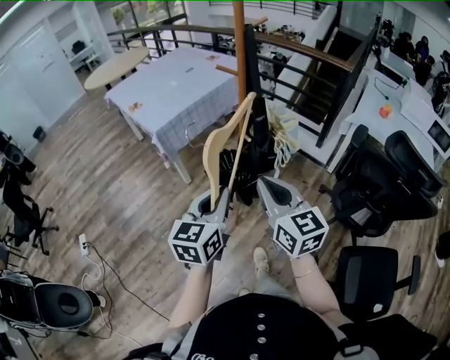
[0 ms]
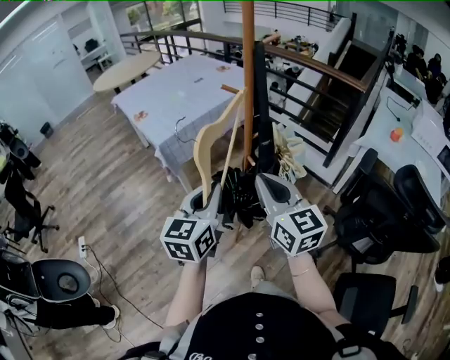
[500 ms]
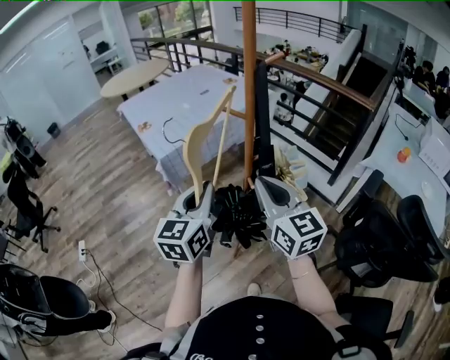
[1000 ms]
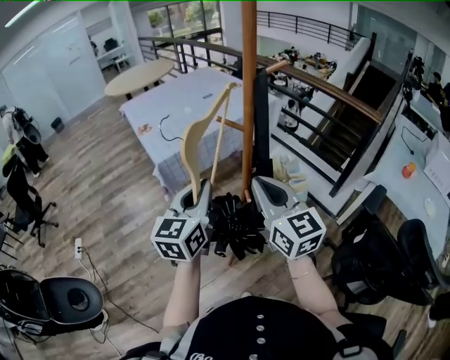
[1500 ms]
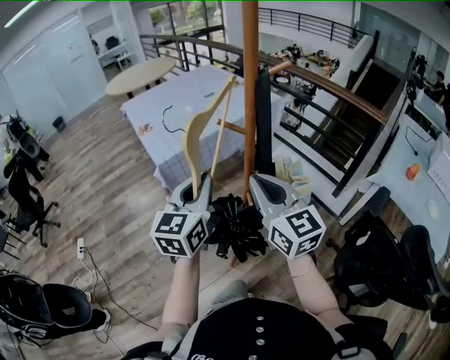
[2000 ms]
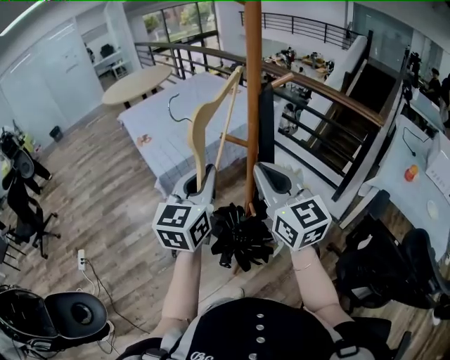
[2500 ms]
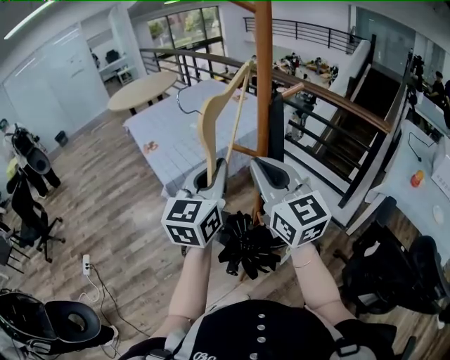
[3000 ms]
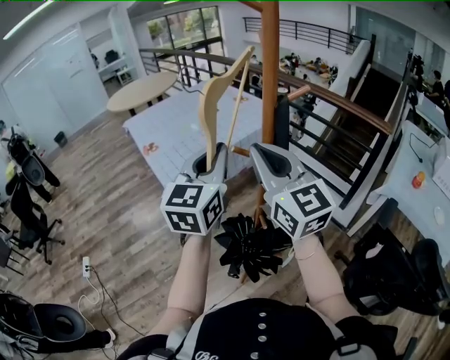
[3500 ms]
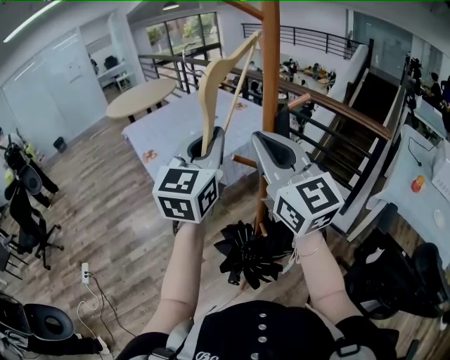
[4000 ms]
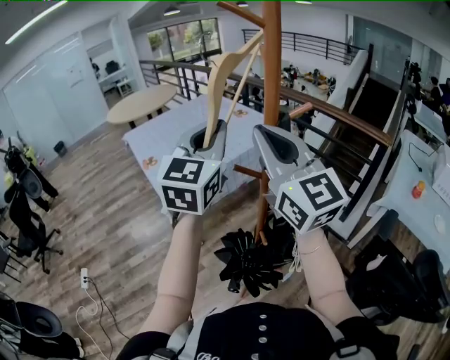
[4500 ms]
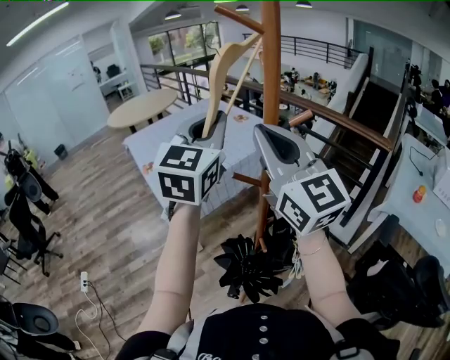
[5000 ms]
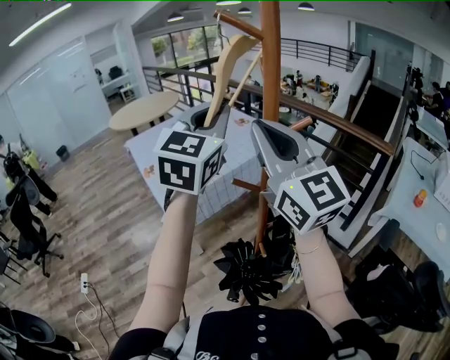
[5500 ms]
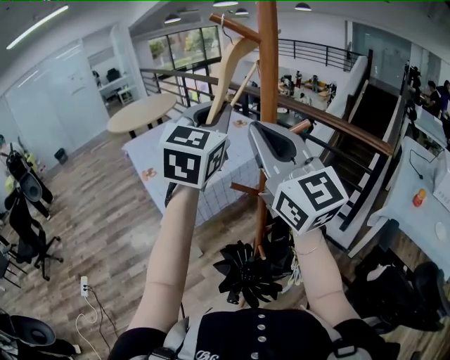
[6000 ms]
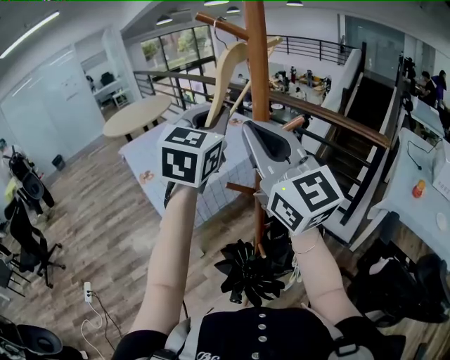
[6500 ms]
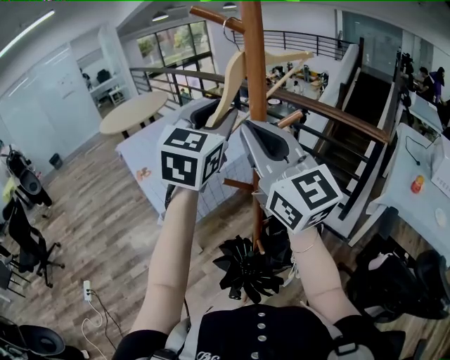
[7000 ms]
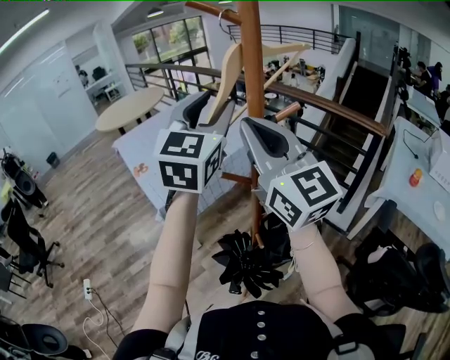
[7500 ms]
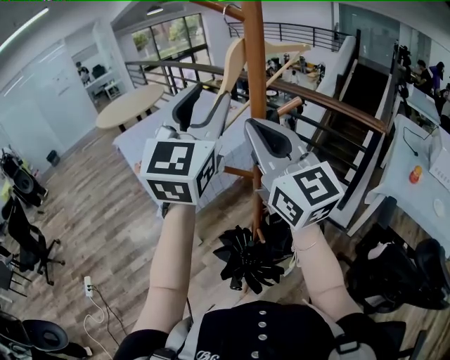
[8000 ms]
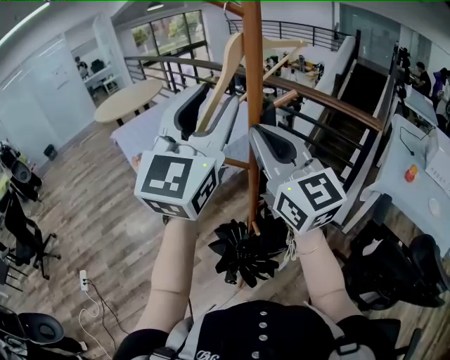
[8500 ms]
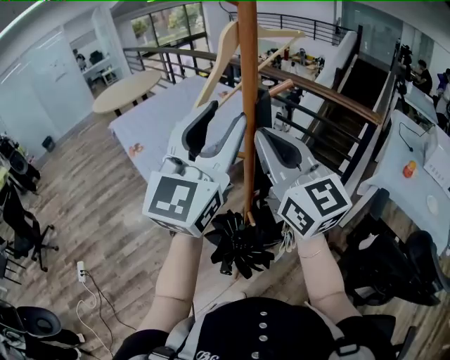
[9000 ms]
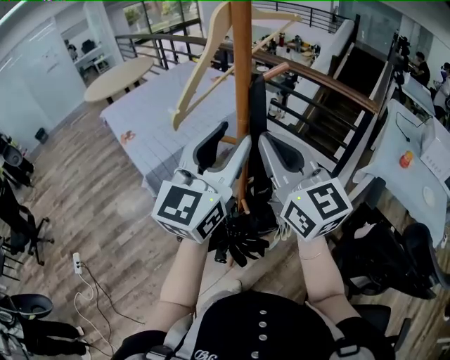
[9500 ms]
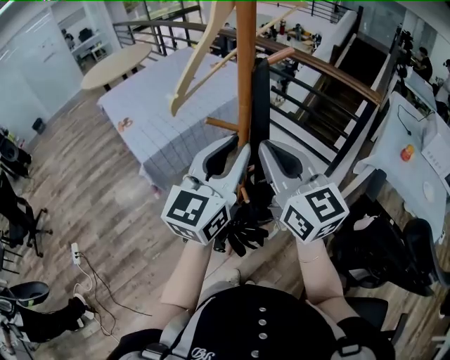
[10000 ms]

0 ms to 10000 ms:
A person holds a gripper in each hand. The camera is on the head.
0 ms to 2000 ms: Both grippers move forward, approximately 25 cm.
2000 ms to 4000 ms: The two grippers go approximately 20 cm upward and forward.
4000 ms to 6000 ms: The left gripper goes about 10 cm upward and forward. The right gripper shifts some 5 cm upward.
6000 ms to 8000 ms: The left gripper ends up some 5 cm from where it was, and opens.
8000 ms to 10000 ms: The grippers both shift downward and backward by roughly 20 cm. The left gripper turns by approximately 30 degrees, and closes.

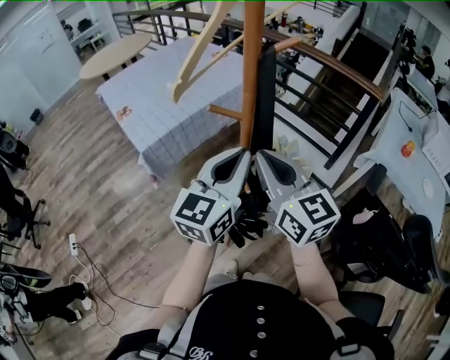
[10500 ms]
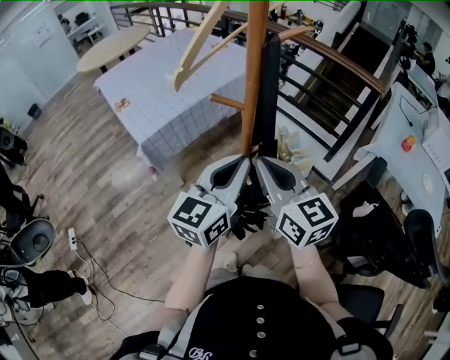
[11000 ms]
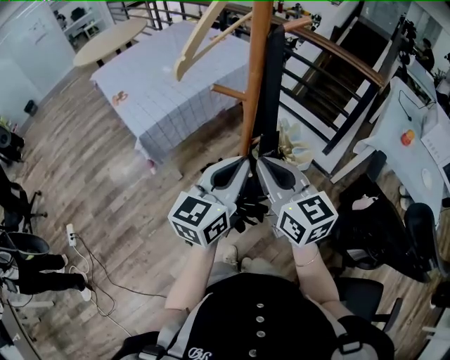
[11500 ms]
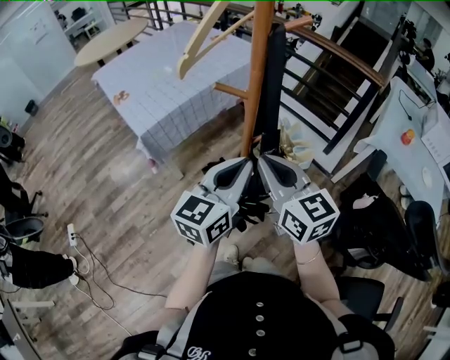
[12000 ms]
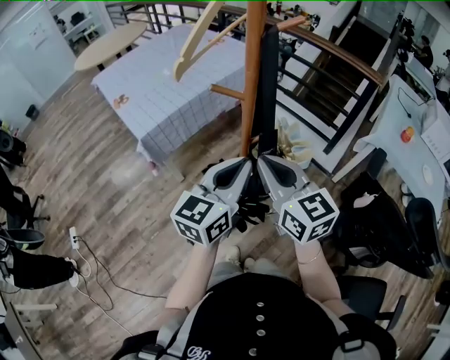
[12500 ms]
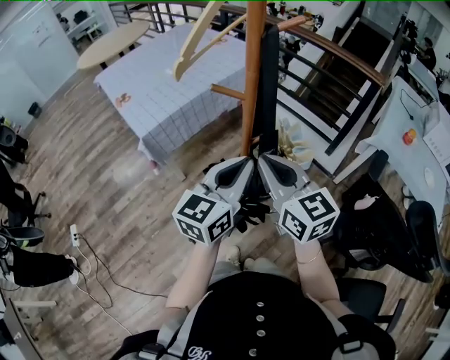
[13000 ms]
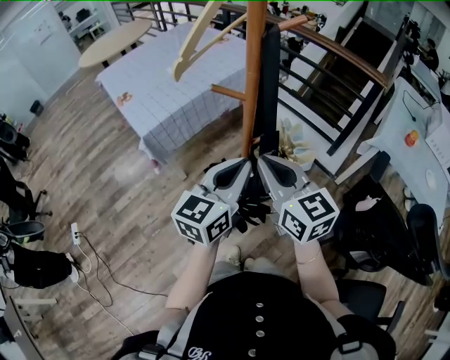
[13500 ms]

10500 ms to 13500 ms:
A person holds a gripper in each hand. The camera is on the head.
10500 ms to 12000 ms: The two grippers go roughly 5 cm downward.
12000 ms to 13500 ms: Both grippers stay about where they are.

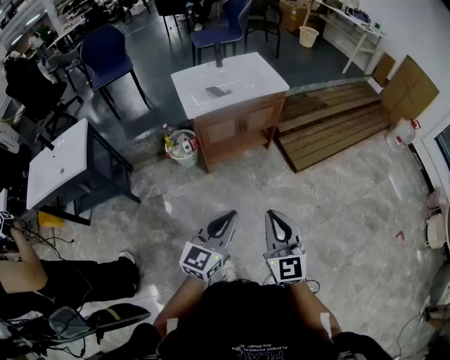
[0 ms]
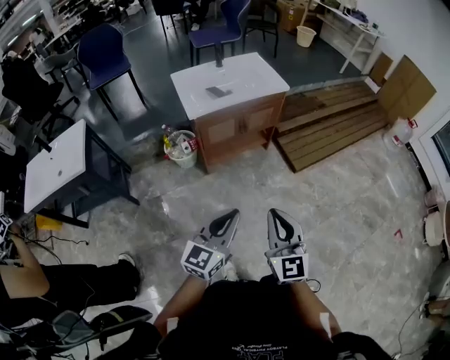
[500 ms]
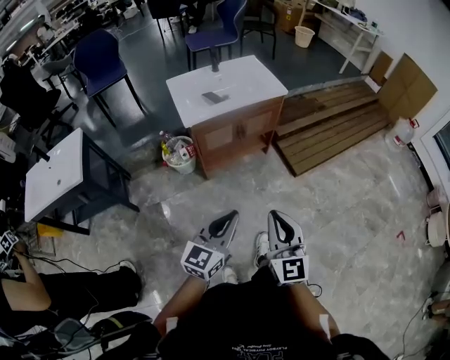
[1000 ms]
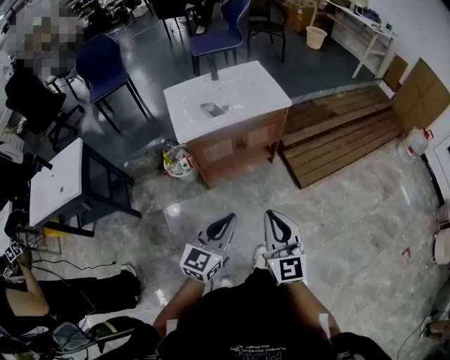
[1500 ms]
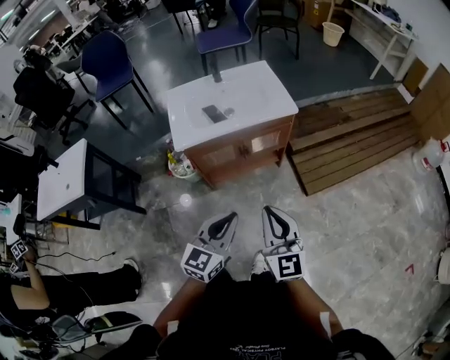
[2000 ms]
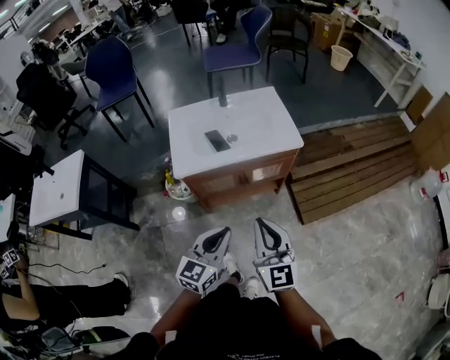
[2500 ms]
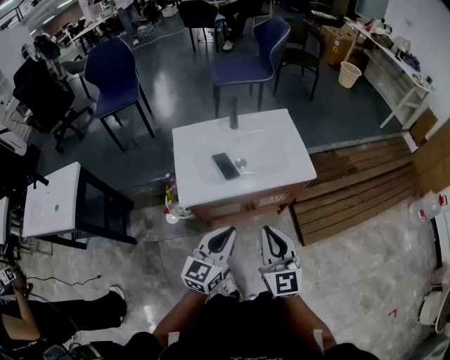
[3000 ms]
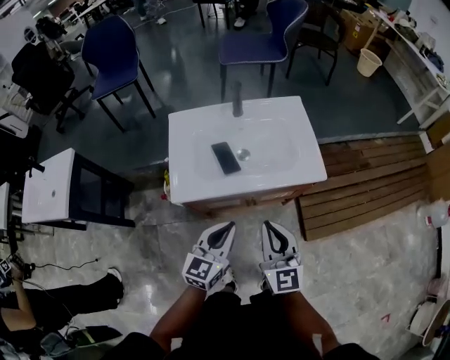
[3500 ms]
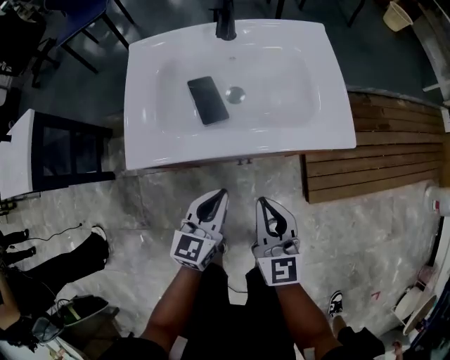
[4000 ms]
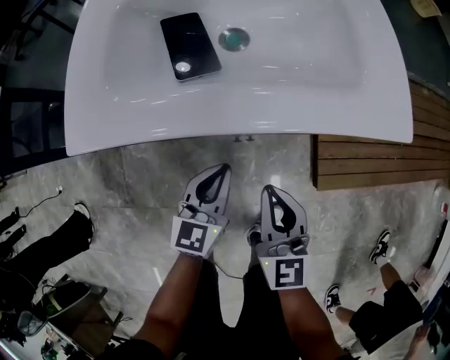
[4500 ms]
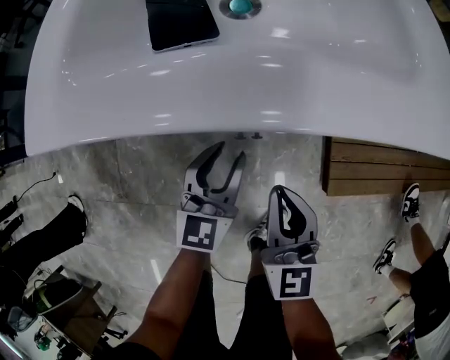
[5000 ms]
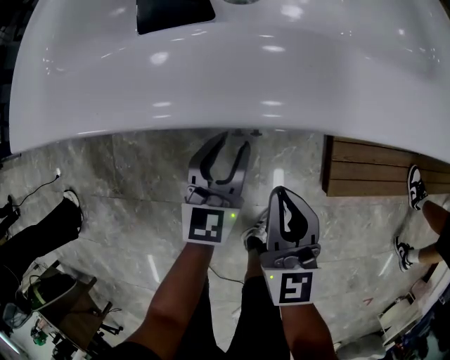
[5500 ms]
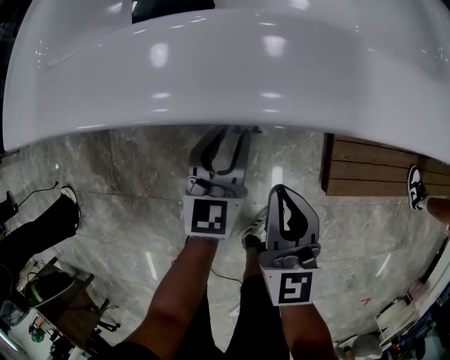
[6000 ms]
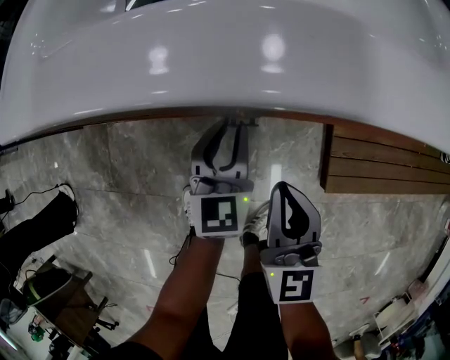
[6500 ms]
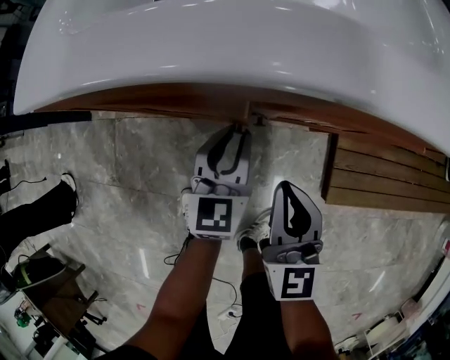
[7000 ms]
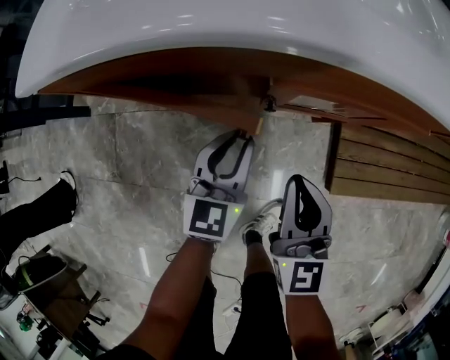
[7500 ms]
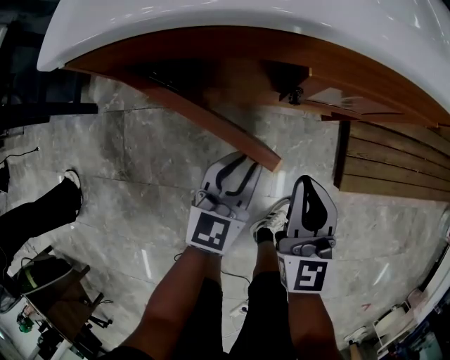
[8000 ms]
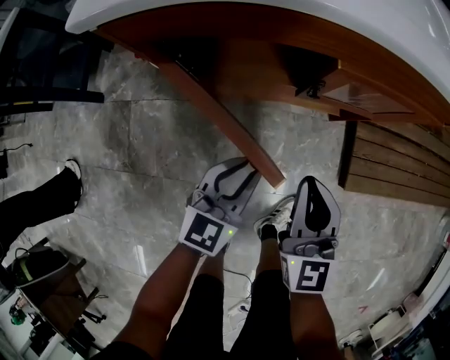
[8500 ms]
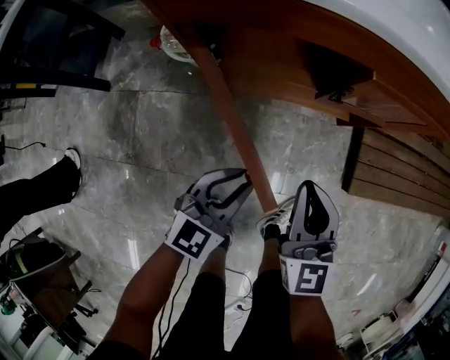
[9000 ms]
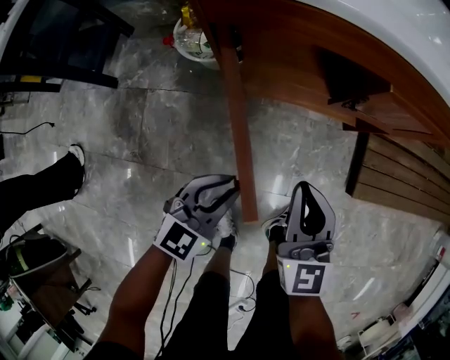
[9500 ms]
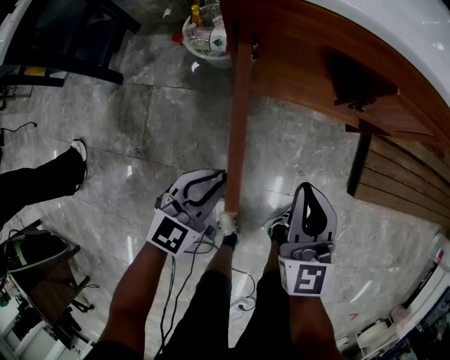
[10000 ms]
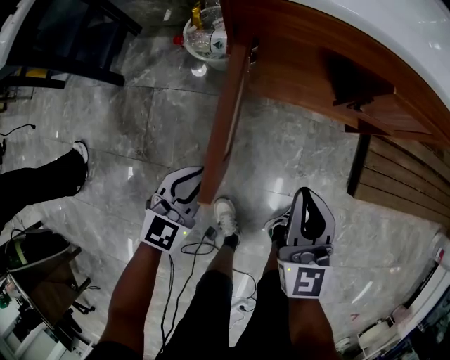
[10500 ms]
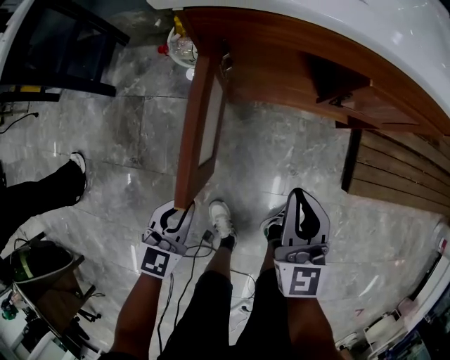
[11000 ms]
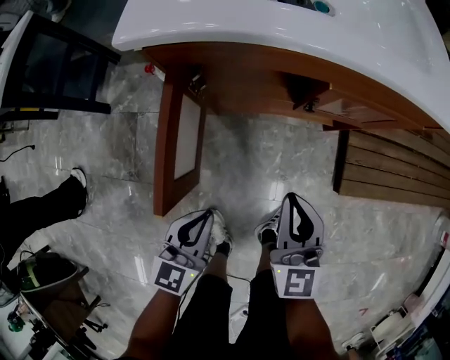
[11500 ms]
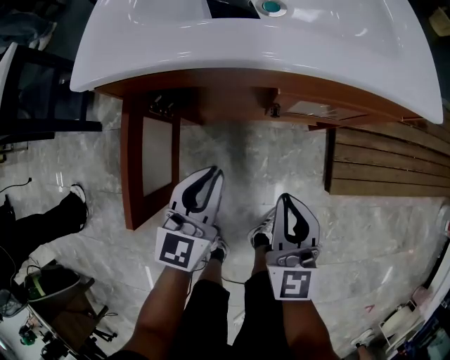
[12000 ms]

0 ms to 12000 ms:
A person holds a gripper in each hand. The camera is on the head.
0 ms to 2000 ms: Both grippers travel together forward, approximately 25 cm.
2000 ms to 4000 ms: Both grippers travel together forward and downward, about 40 cm. The left gripper rotates approximately 20 degrees.
4000 ms to 6000 ms: The grippers both shift downward by approximately 20 cm.
6000 ms to 8000 ms: The left gripper shifts about 10 cm backward, while the right gripper shifts by roughly 5 cm.
8000 ms to 10000 ms: The right gripper heads to the left and backward, covering some 15 cm. The left gripper moves to the left and backward, some 20 cm.
10000 ms to 12000 ms: The left gripper moves to the right, forward and upward, approximately 20 cm, and changes its angle by about 20 degrees; the right gripper heads to the right, covering about 15 cm.

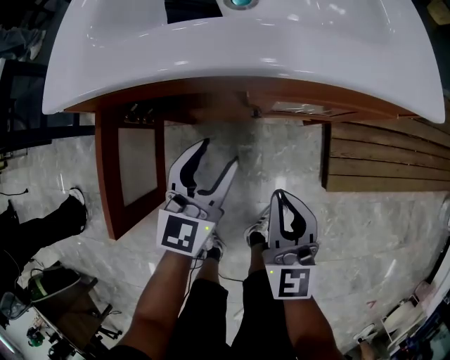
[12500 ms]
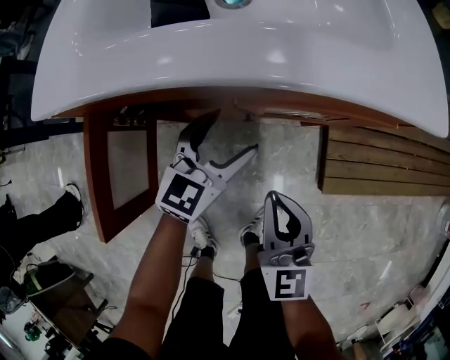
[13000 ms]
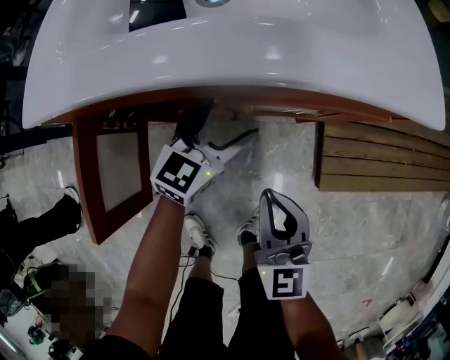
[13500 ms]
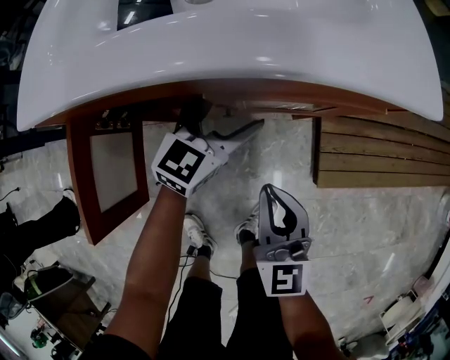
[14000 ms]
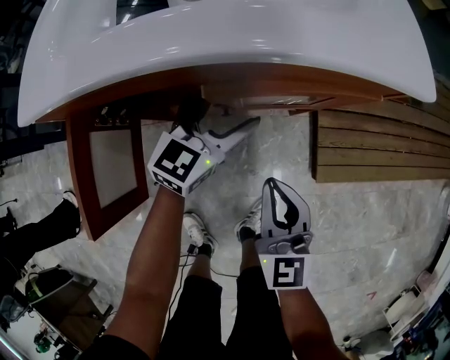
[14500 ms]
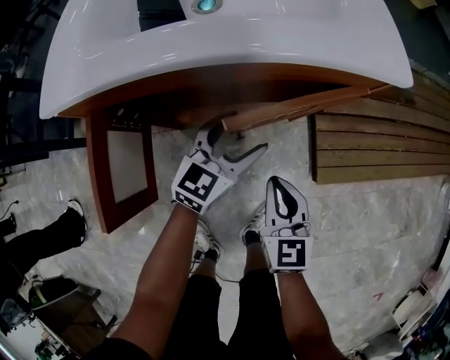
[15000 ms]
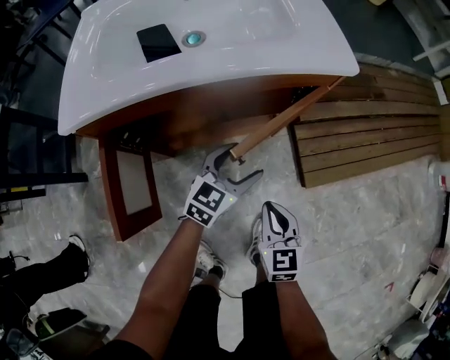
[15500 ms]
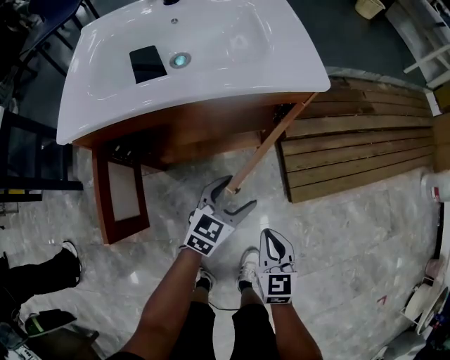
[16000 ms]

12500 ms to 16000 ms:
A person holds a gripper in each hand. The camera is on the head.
12500 ms to 14500 ms: The left gripper shifts about 15 cm forward and to the right, and opens its fingers. The right gripper changes place by some 5 cm.
14500 ms to 16000 ms: Both grippers move backward and to the right, roughly 15 cm.
